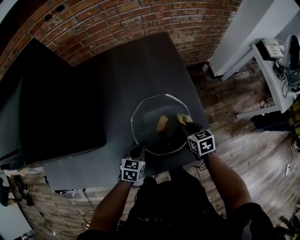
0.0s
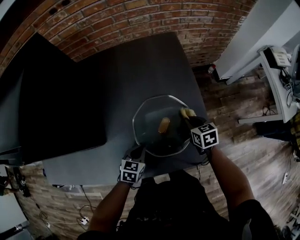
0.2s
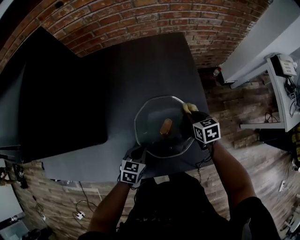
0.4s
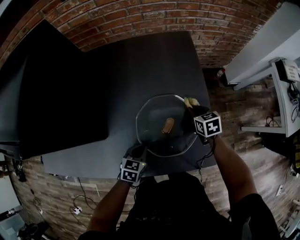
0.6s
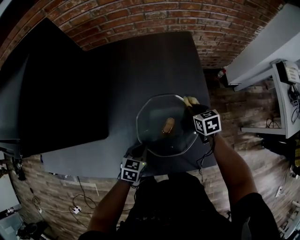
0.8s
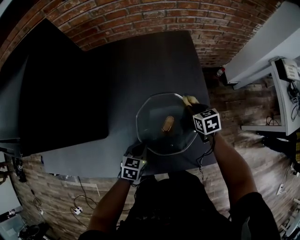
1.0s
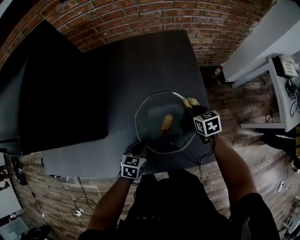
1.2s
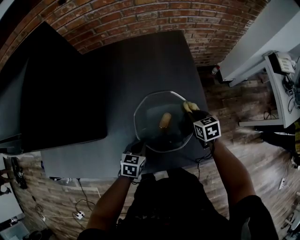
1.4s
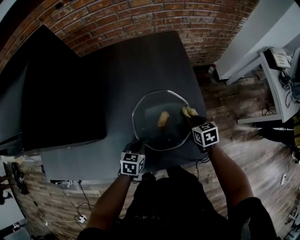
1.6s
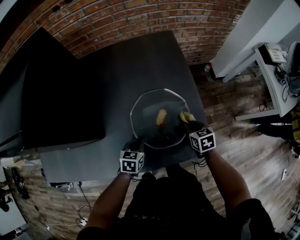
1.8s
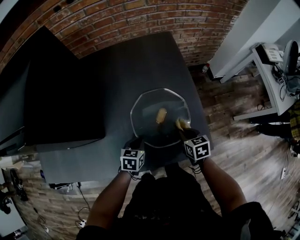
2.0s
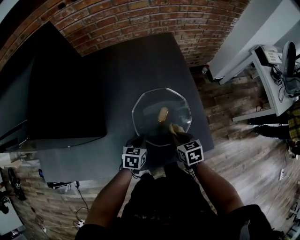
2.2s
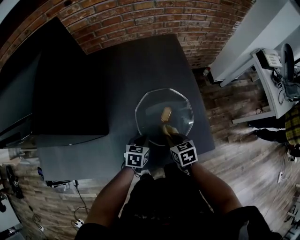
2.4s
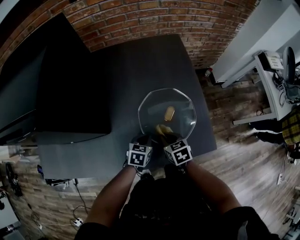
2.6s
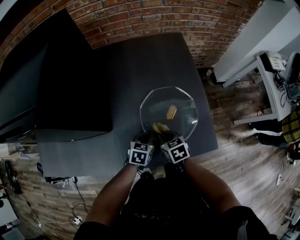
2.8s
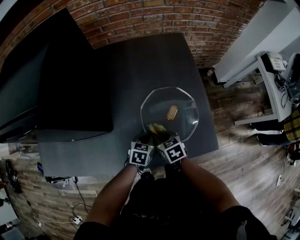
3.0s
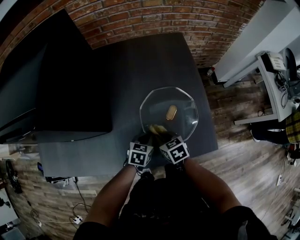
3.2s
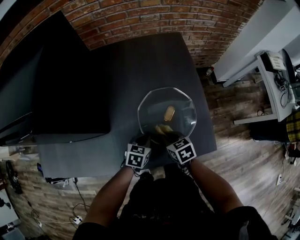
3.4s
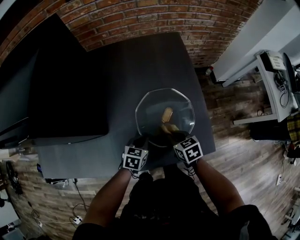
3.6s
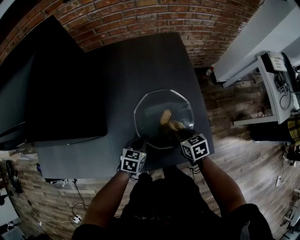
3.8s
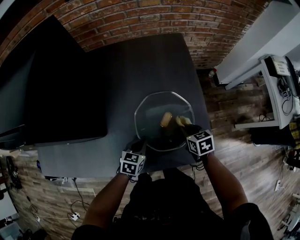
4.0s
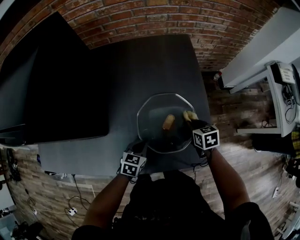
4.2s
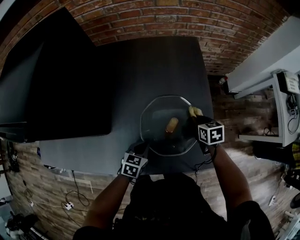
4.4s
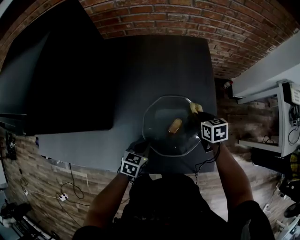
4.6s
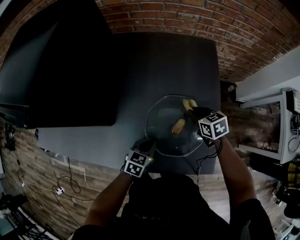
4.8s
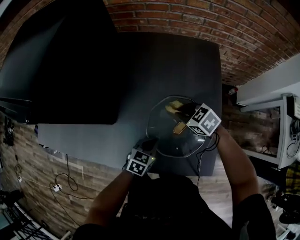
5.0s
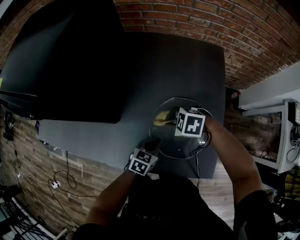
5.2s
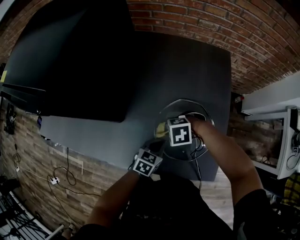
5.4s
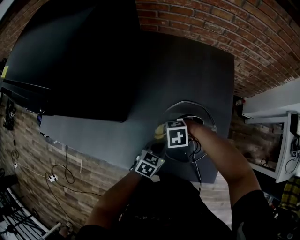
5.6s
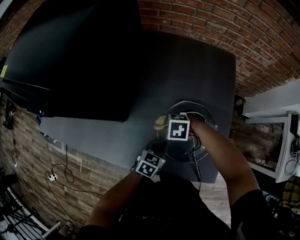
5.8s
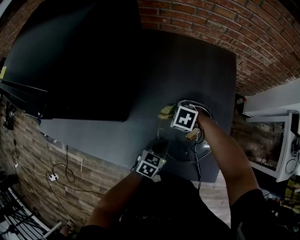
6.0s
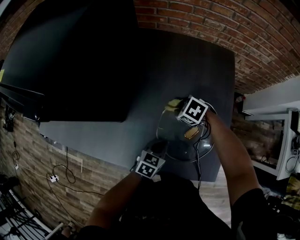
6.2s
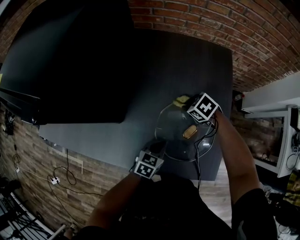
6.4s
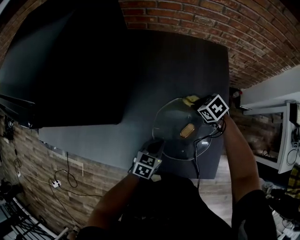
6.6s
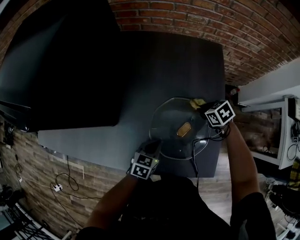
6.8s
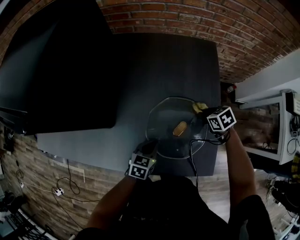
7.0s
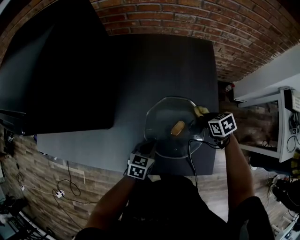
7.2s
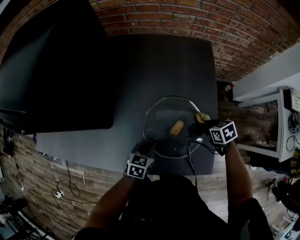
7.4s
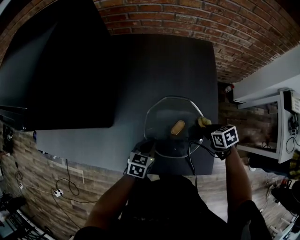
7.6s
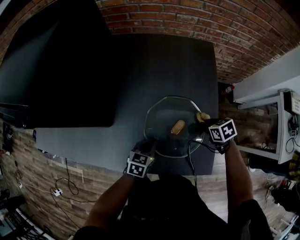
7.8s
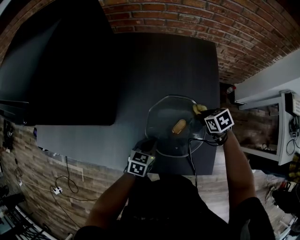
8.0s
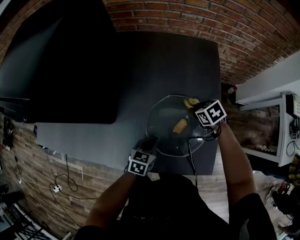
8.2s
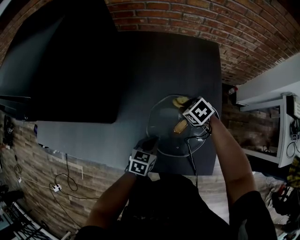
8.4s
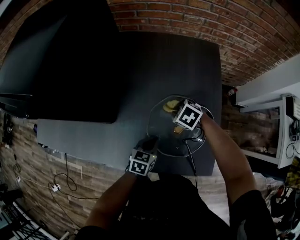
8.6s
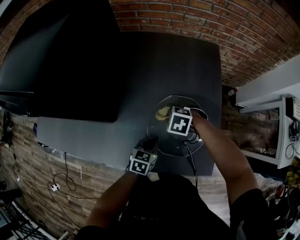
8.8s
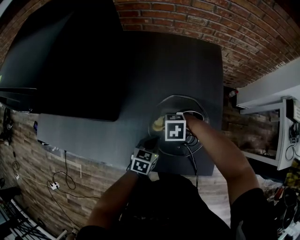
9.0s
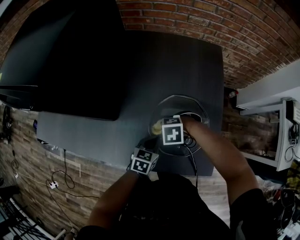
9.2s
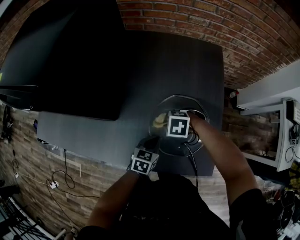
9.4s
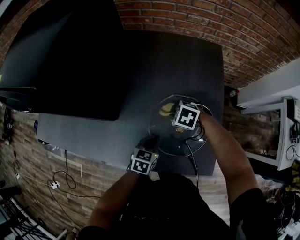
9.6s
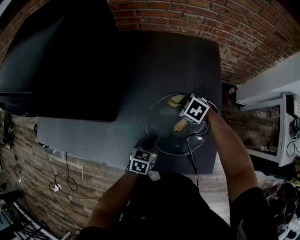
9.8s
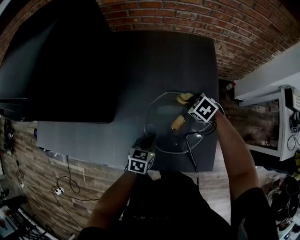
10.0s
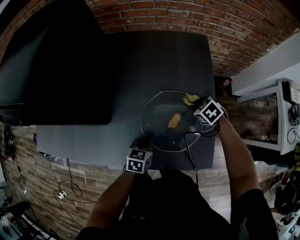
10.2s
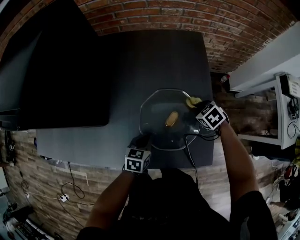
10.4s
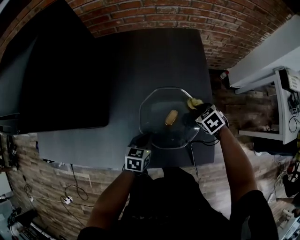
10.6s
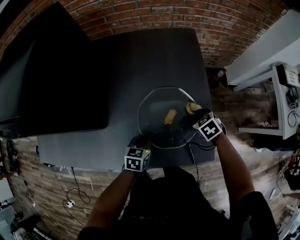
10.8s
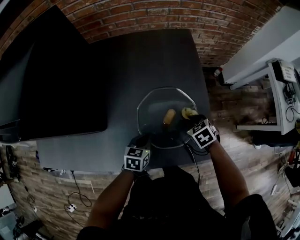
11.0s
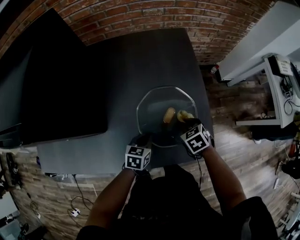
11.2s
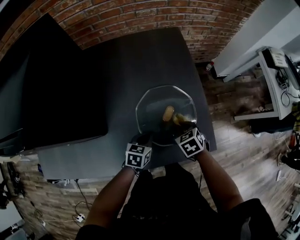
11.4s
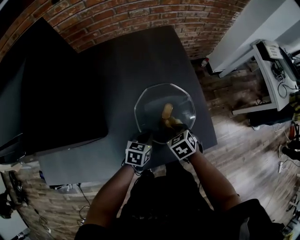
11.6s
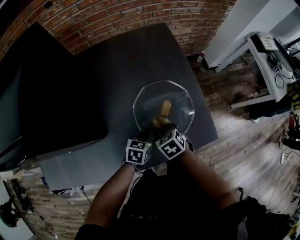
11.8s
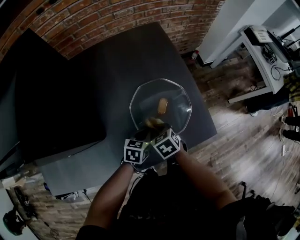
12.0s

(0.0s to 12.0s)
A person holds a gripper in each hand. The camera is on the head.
0.0s - 1.6s: The right gripper reaches roughly 10 cm forward, then returns.
1.6s - 3.0s: The right gripper shifts some 20 cm to the left and backward.
3.0s - 4.4s: The right gripper goes about 25 cm to the right and forward.
4.4s - 6.0s: The right gripper shifts by roughly 25 cm, and rotates around the line of its fingers by about 60 degrees, counterclockwise from behind.
6.0s - 7.6s: The right gripper ends up about 25 cm from where it was, and rotates around the line of its fingers by roughly 50 degrees, clockwise from behind.
7.6s - 9.0s: The right gripper moves approximately 20 cm, and rotates around the line of its fingers by approximately 70 degrees, counterclockwise from behind.
9.0s - 10.4s: The right gripper shifts by approximately 20 cm, and rolls clockwise, seen from behind, by roughly 50 degrees.
10.4s - 12.0s: The right gripper changes place by some 20 cm, and rotates some 30 degrees. The left gripper changes its angle by about 20 degrees.

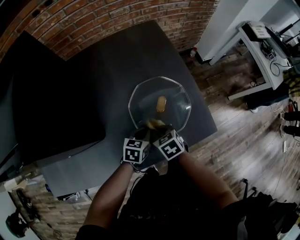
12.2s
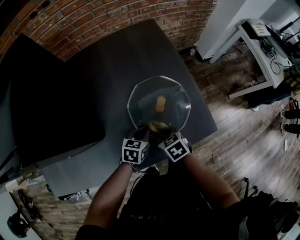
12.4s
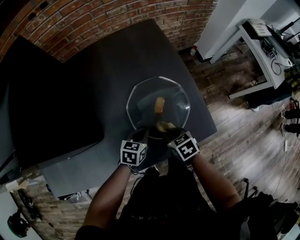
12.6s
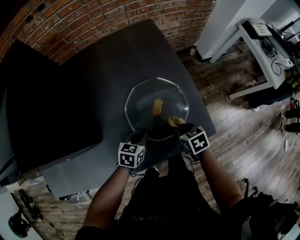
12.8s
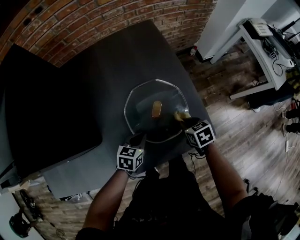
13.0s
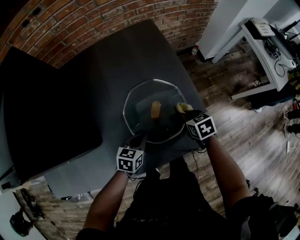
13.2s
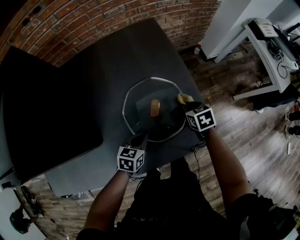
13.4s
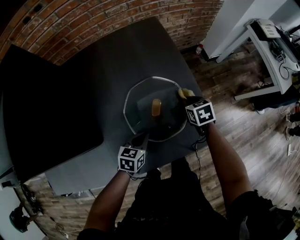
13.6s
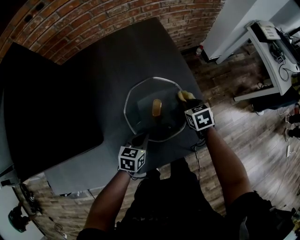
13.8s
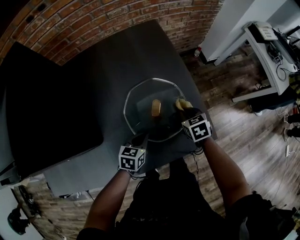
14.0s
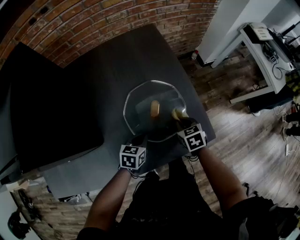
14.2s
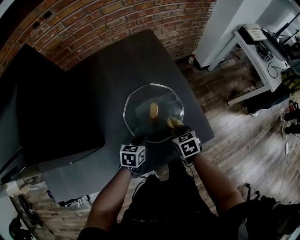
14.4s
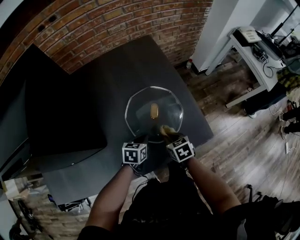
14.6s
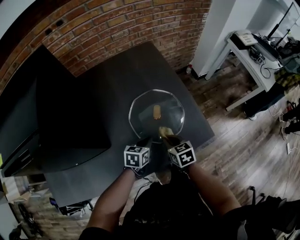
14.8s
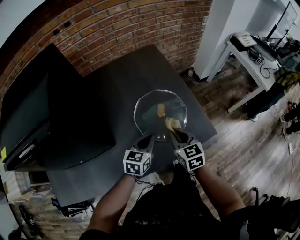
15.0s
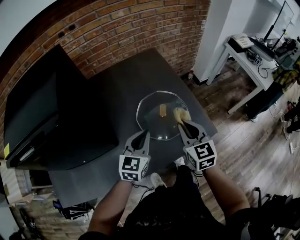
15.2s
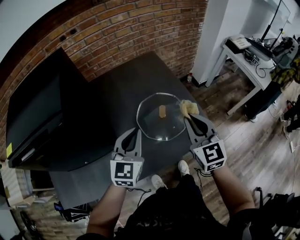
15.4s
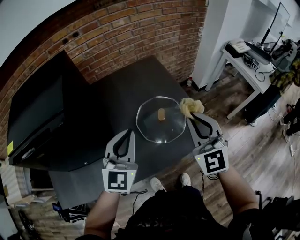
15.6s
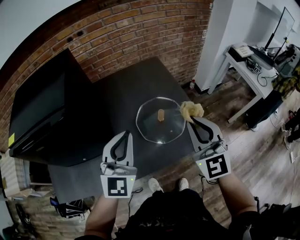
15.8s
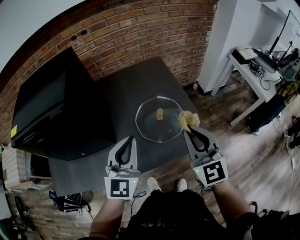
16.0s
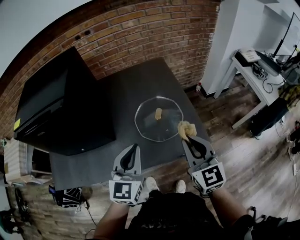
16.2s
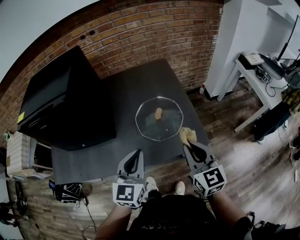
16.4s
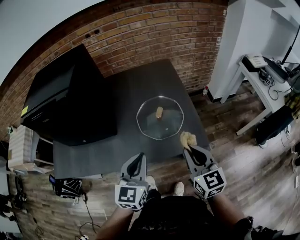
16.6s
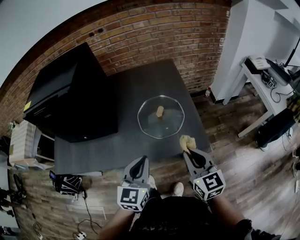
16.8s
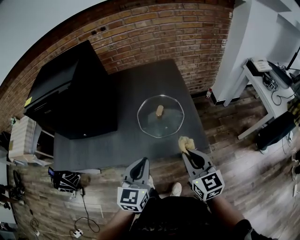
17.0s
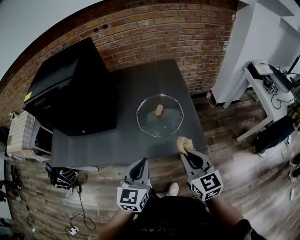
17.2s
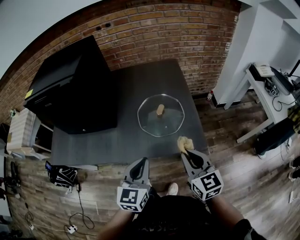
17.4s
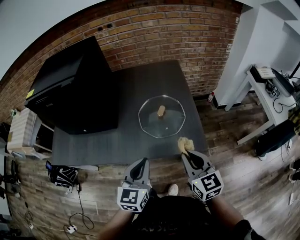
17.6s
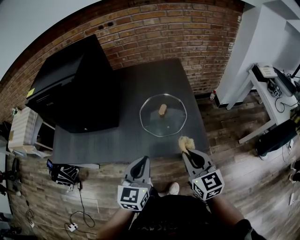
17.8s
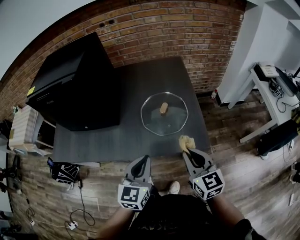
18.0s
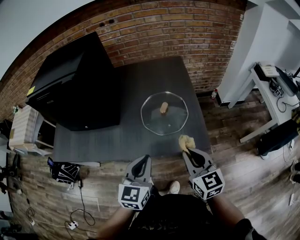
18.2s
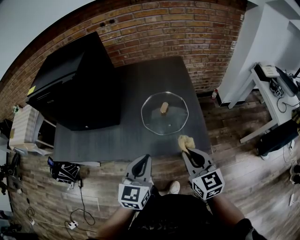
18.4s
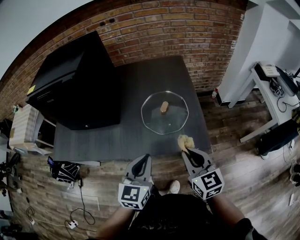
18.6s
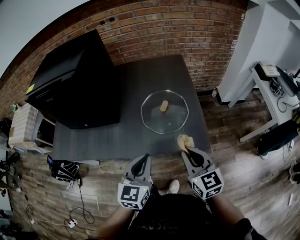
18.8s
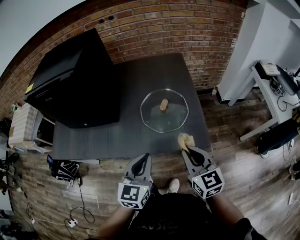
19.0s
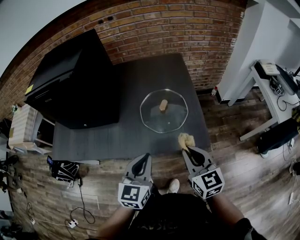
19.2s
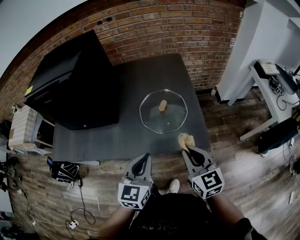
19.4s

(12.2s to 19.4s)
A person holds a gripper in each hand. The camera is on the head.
12.2s - 13.6s: The right gripper travels to the right and forward by some 25 cm.
13.6s - 15.0s: The right gripper moves backward, upward and to the left, some 25 cm, and swivels approximately 30 degrees. Meanwhile the left gripper is displaced upward by approximately 10 cm.
15.0s - 16.6s: The right gripper shifts roughly 20 cm upward, backward and to the right. Meanwhile the left gripper heads upward and backward, covering approximately 25 cm, and swivels some 30 degrees.
16.6s - 18.0s: The left gripper changes place by approximately 5 cm.
18.0s - 19.4s: Both grippers stay about where they are.

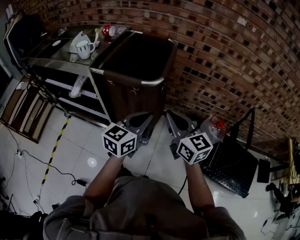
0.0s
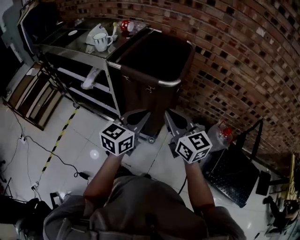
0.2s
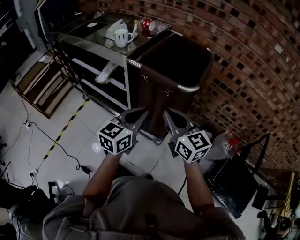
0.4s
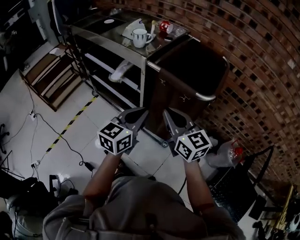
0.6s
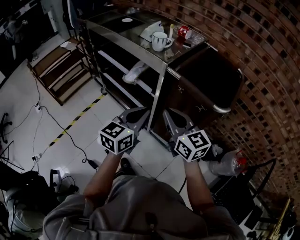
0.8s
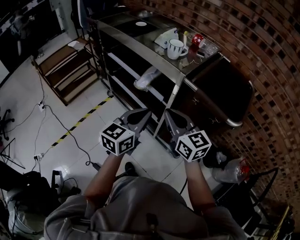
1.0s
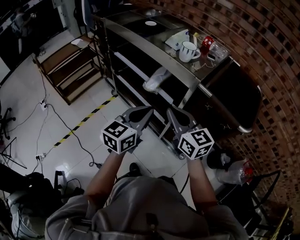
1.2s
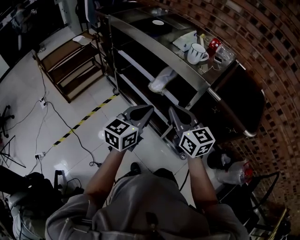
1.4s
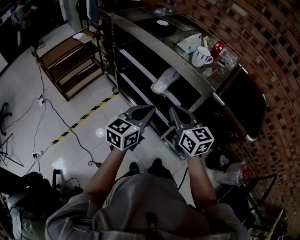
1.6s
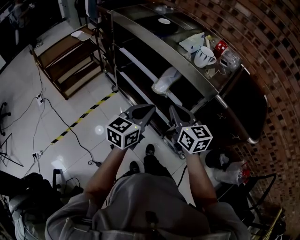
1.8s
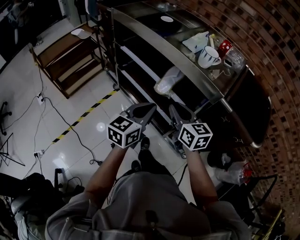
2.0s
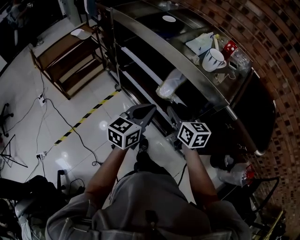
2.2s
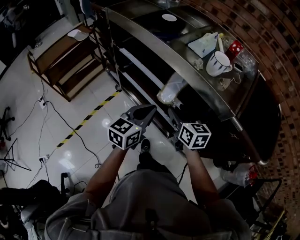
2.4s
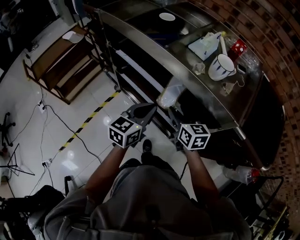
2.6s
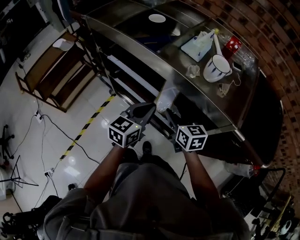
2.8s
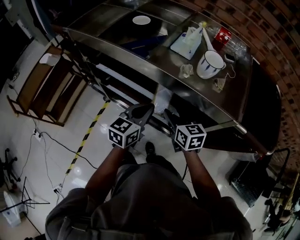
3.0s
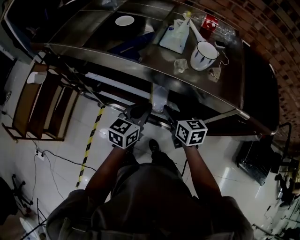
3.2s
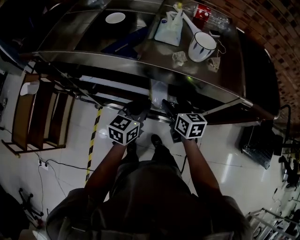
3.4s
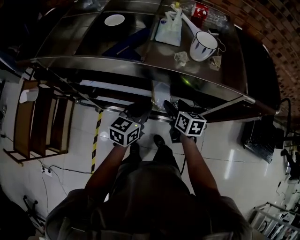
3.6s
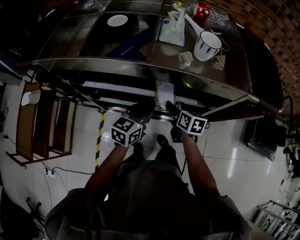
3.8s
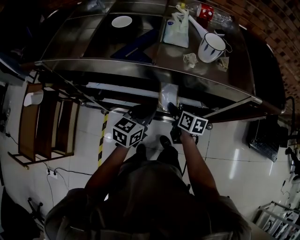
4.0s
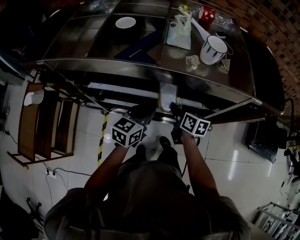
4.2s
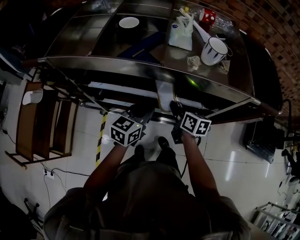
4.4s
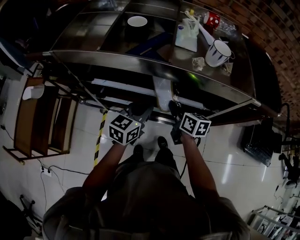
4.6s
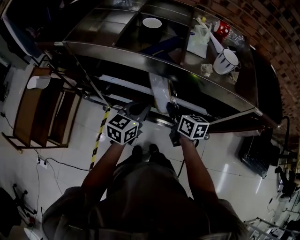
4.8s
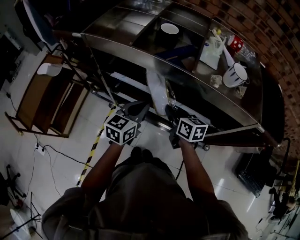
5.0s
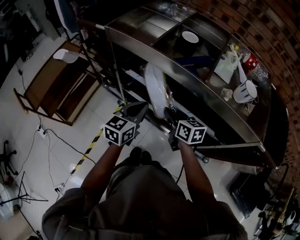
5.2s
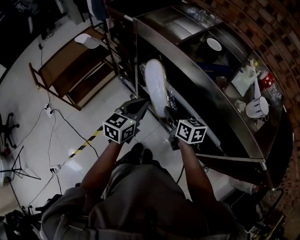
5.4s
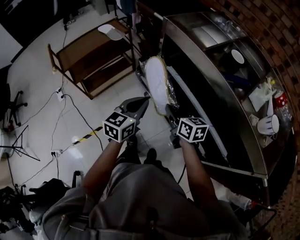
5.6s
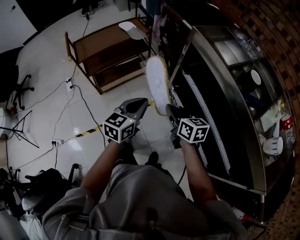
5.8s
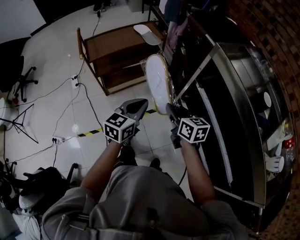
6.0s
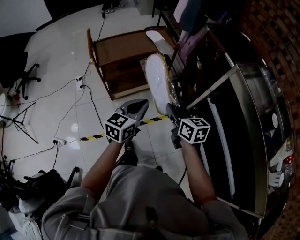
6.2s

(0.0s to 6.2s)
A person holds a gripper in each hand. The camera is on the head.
0.0s - 1.6s: Both grippers are carried approximately 40 cm. The right gripper changes its angle by roughly 20 degrees, while the left gripper swivels approximately 30 degrees.
1.6s - 3.2s: The left gripper moves some 25 cm, and changes its angle by approximately 30 degrees; the right gripper changes place by some 25 cm, turns by about 40 degrees, and opens up.
3.2s - 4.6s: Both grippers move to the left, some 5 cm. The right gripper reaches some 10 cm downward, then returns, swivels about 20 degrees, and closes its fingers.
4.6s - 6.2s: The two grippers travel together, approximately 50 cm. The right gripper swivels some 70 degrees; the left gripper swivels about 60 degrees.
